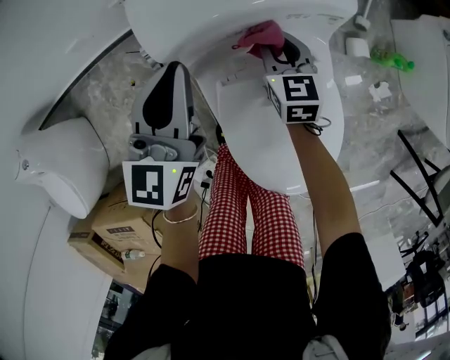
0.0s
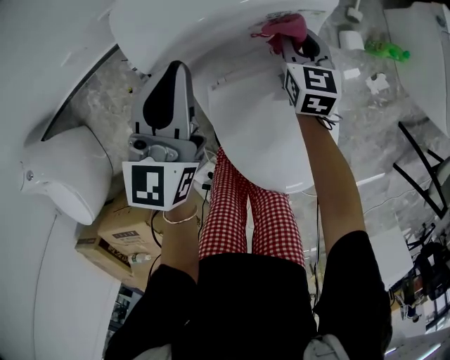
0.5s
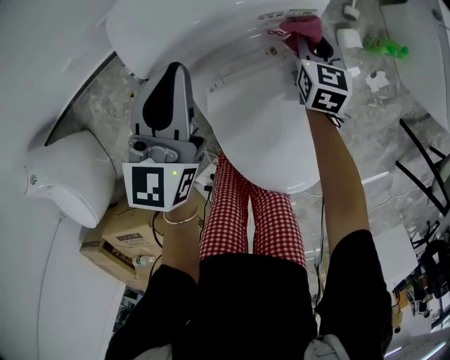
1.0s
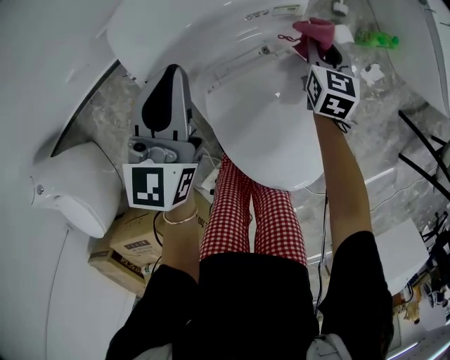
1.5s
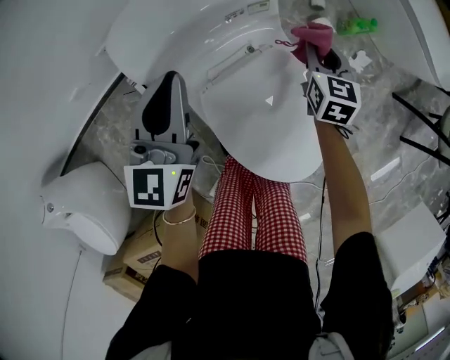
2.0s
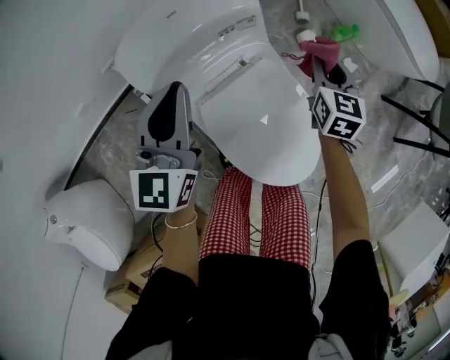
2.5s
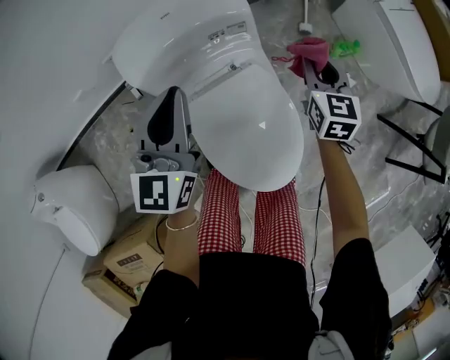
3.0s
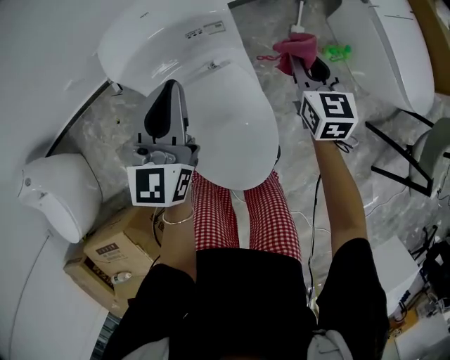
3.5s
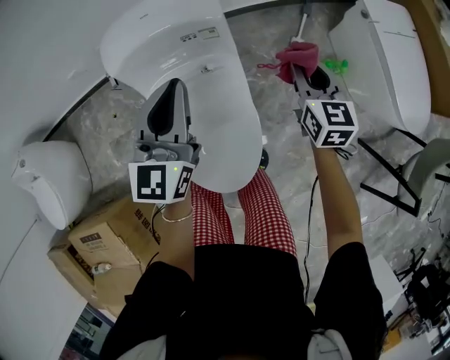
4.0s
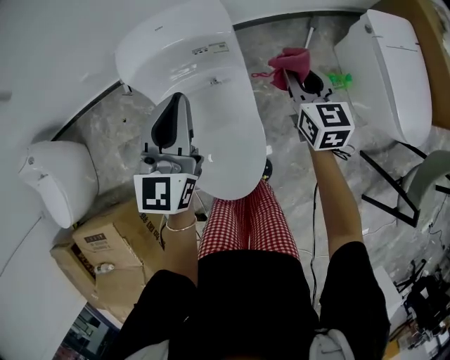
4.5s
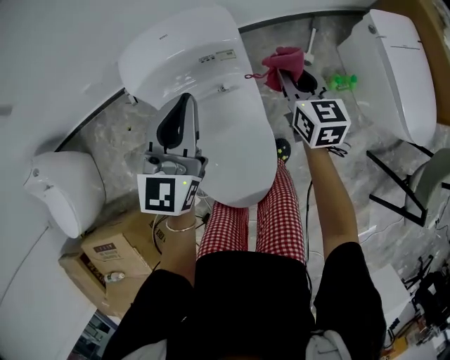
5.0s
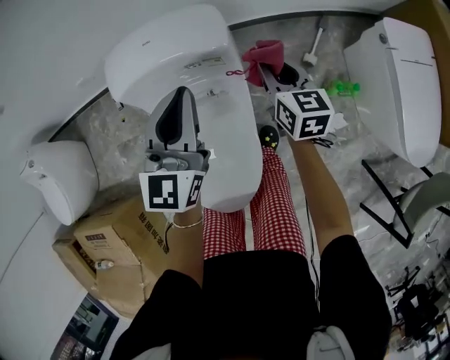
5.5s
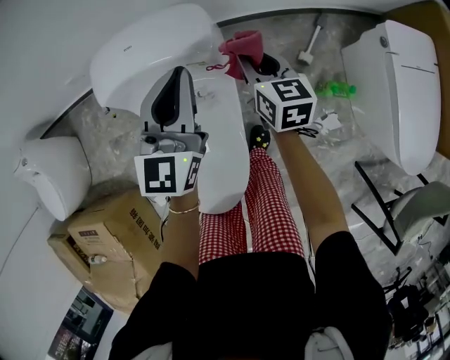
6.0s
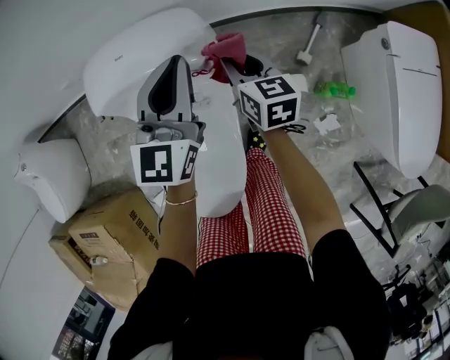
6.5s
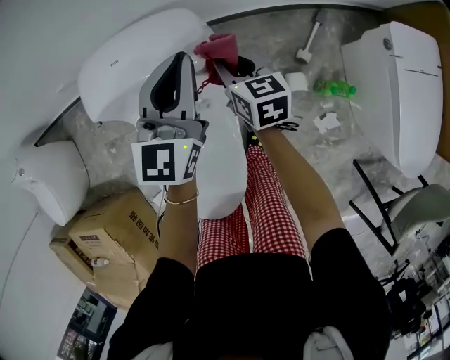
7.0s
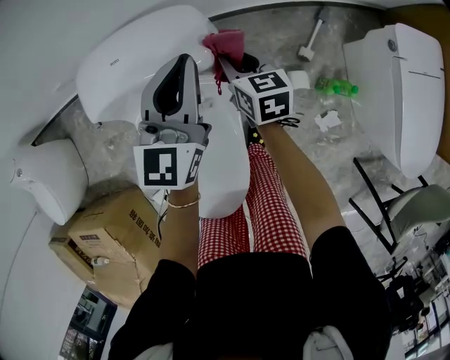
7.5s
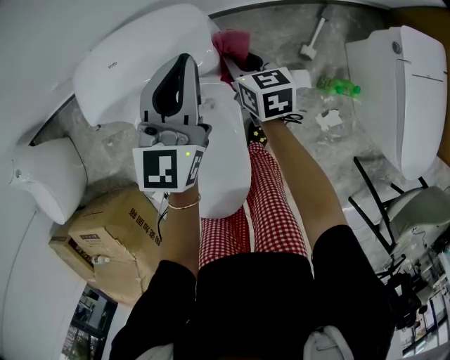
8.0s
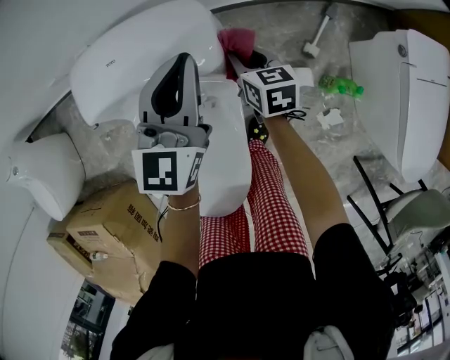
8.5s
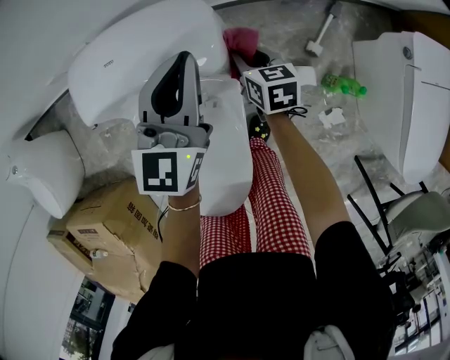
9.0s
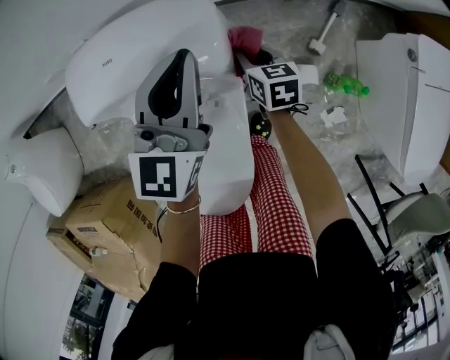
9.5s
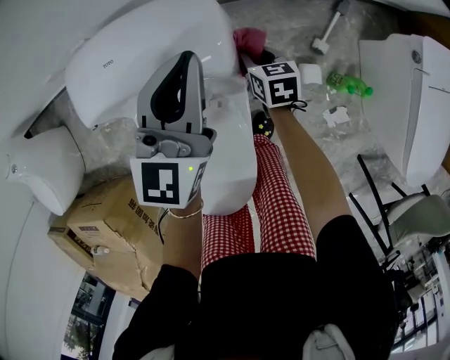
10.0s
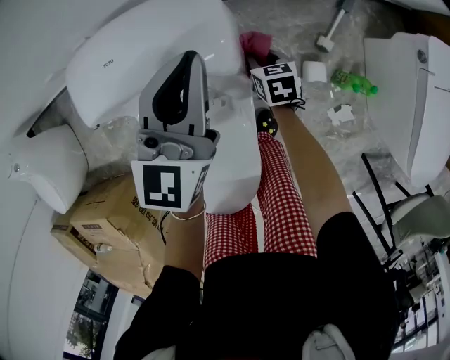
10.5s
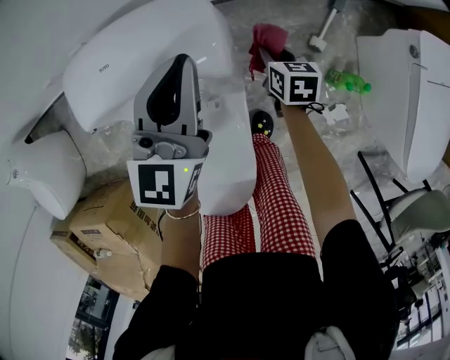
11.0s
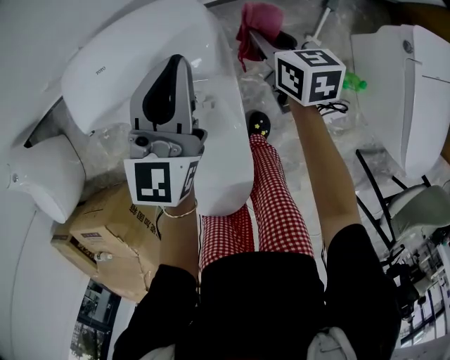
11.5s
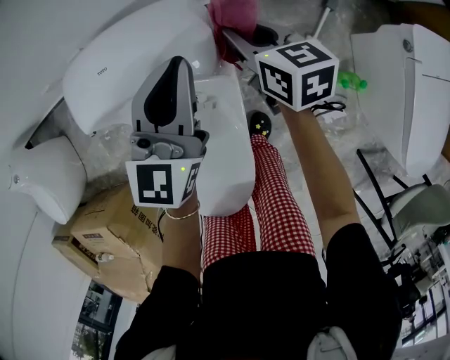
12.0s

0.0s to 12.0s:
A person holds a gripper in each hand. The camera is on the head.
0.0s to 2.0s: The right gripper is displaced to the right by about 20 cm, and changes its angle by roughly 30 degrees. Meanwhile the left gripper travels to the right and upward by approximately 10 cm.
2.0s to 4.0s: The left gripper shifts approximately 20 cm to the right and upward. Meanwhile the right gripper heads upward and to the right, covering roughly 15 cm, and swivels approximately 30 degrees.
4.0s to 6.0s: The left gripper goes approximately 15 cm forward and to the right. The right gripper travels forward and to the left by approximately 15 cm, and turns by roughly 20 degrees.
6.0s to 8.0s: The left gripper goes approximately 10 cm forward and downward. The right gripper heads downward, covering some 10 cm.
8.0s to 10.0s: The right gripper is displaced downward by about 10 cm.
10.0s to 12.0s: The right gripper shifts approximately 15 cm upward.

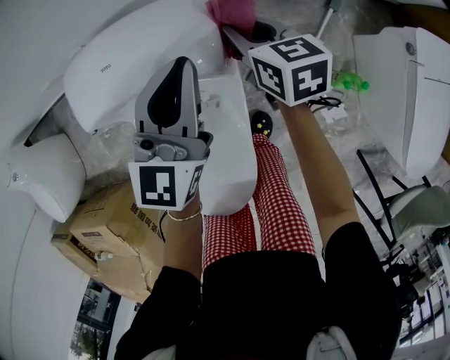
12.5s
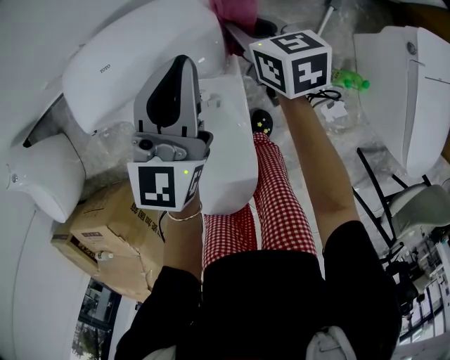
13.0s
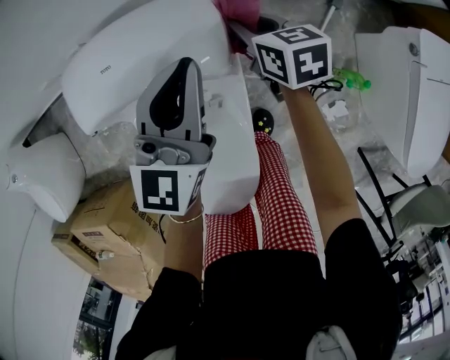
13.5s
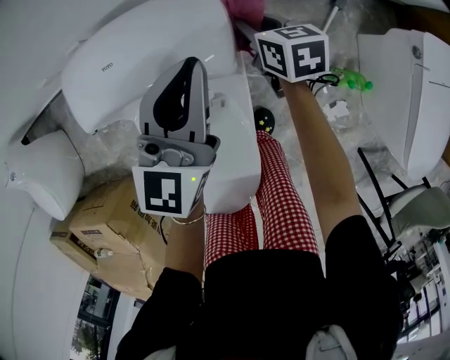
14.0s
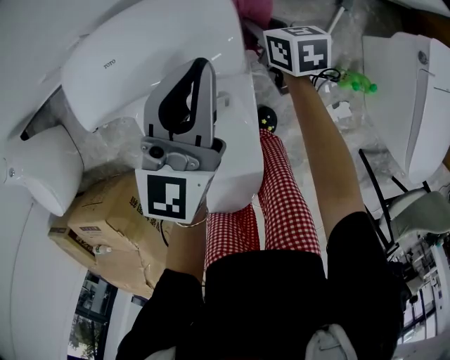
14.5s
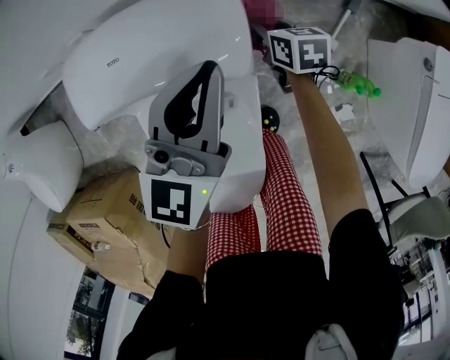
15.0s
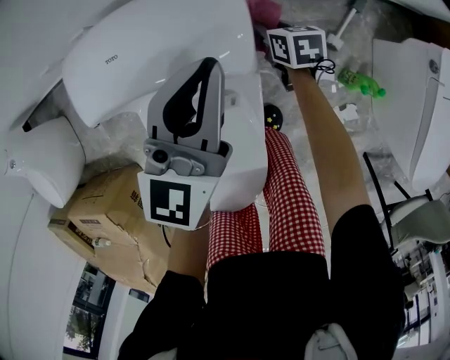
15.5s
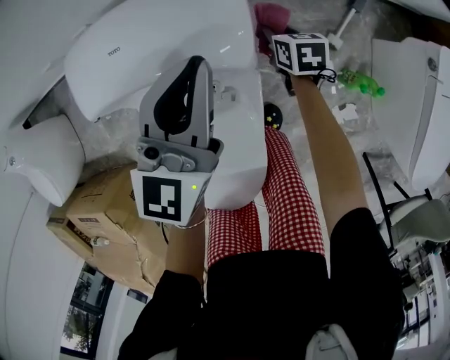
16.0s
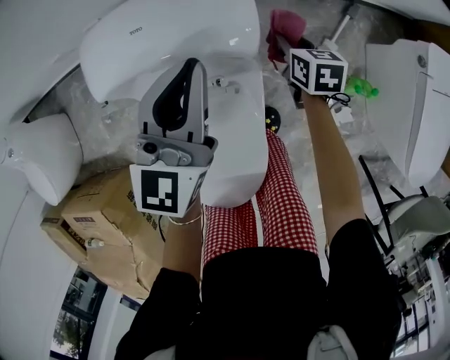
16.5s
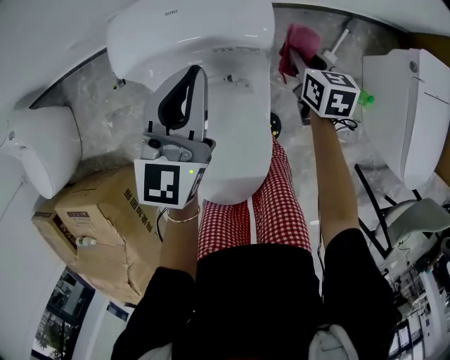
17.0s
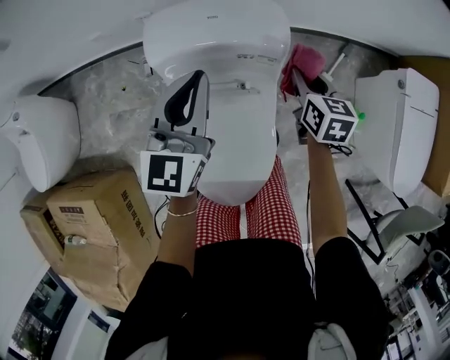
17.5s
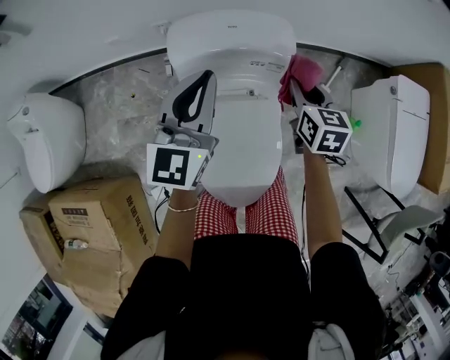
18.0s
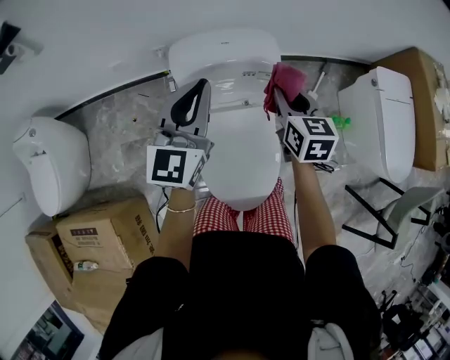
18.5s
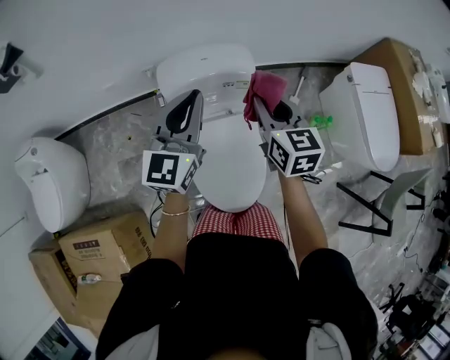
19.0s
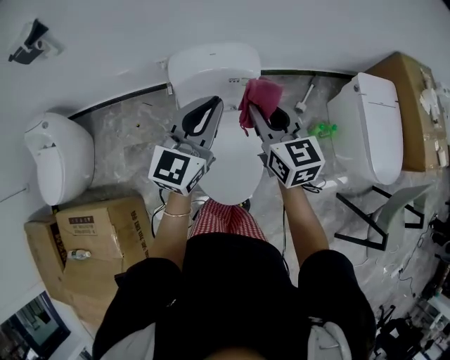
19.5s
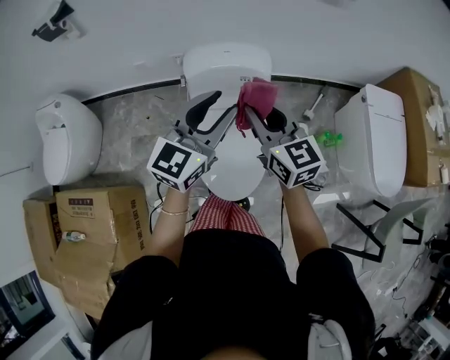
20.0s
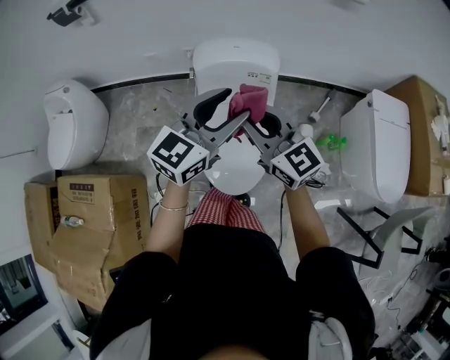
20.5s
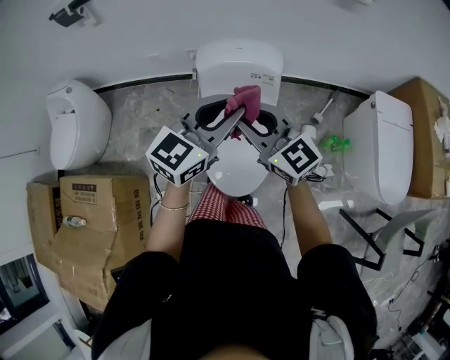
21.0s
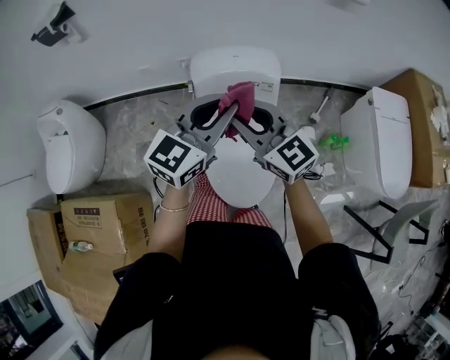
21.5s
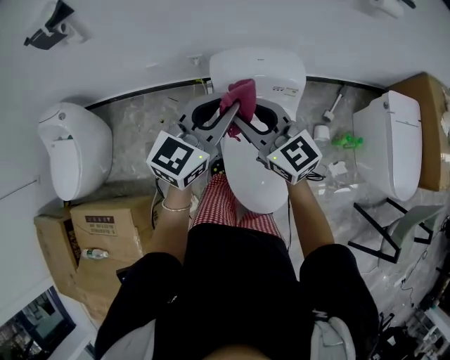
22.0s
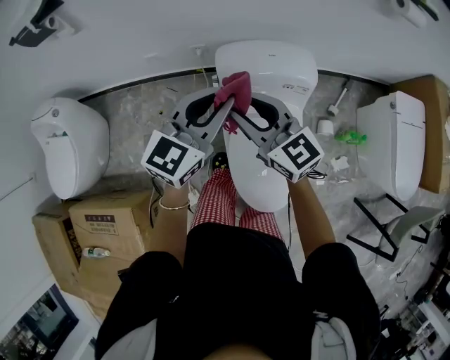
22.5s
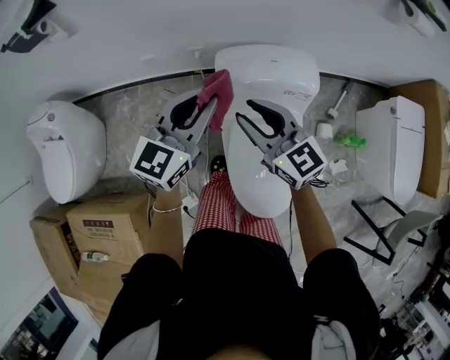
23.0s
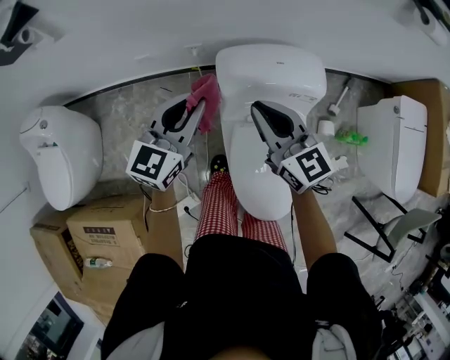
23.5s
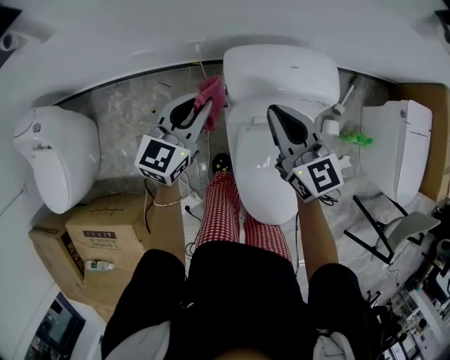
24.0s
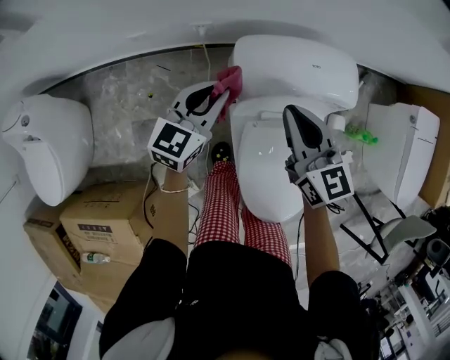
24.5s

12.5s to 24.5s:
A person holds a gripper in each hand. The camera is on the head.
12.5s to 14.5s: The right gripper heads downward, covering roughly 10 cm.
14.5s to 16.5s: The right gripper goes approximately 5 cm backward, and goes downward and returns, some 10 cm each way, while the left gripper changes place by approximately 5 cm.
16.5s to 18.5s: The right gripper moves upward, backward and to the left, about 35 cm, and swivels some 30 degrees. The left gripper shifts approximately 25 cm upward, to the left and backward.
18.5s to 20.5s: The right gripper goes some 25 cm backward and upward, and turns by some 50 degrees; the left gripper moves backward, to the right and upward, approximately 20 cm, and opens.
20.5s to 22.5s: The grippers both shift forward and to the left by about 25 cm. The left gripper closes up.
22.5s to 24.5s: Both grippers travel together downward and forward, roughly 20 cm. The right gripper swivels roughly 20 degrees, and closes.

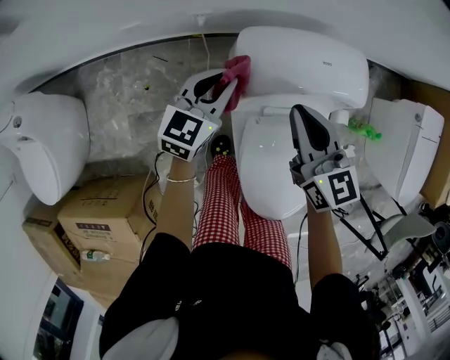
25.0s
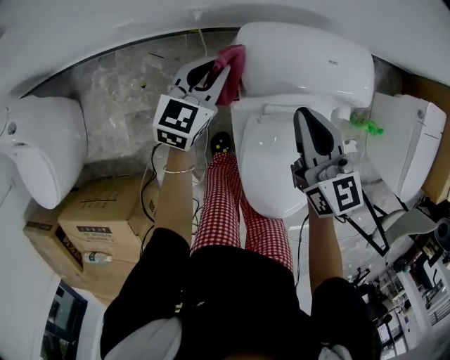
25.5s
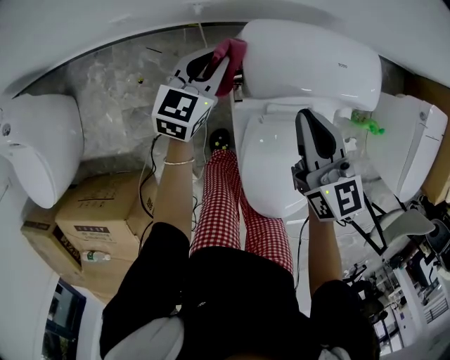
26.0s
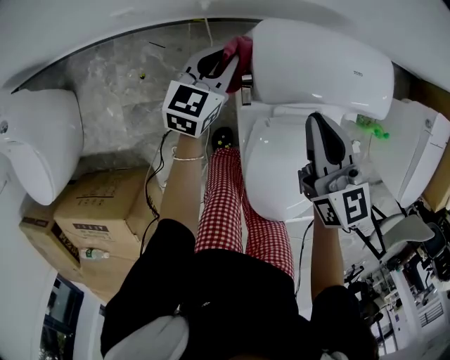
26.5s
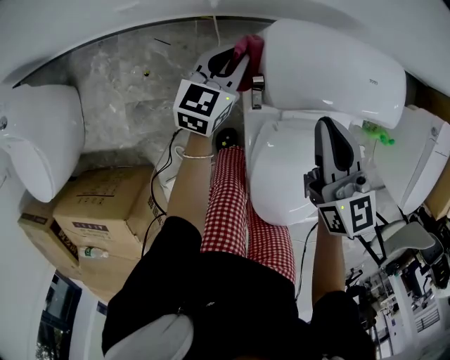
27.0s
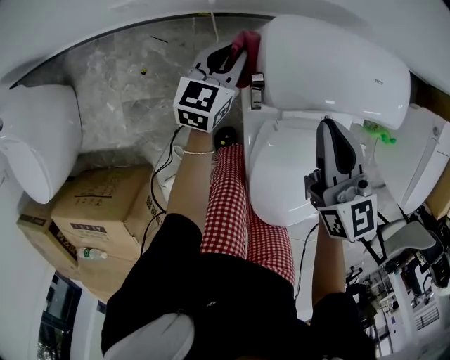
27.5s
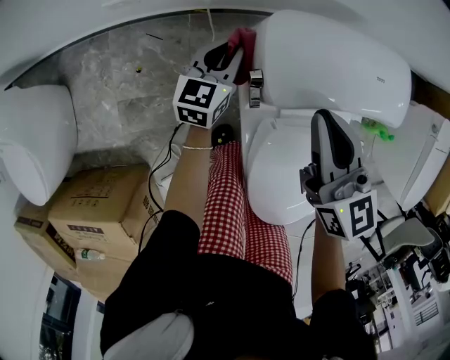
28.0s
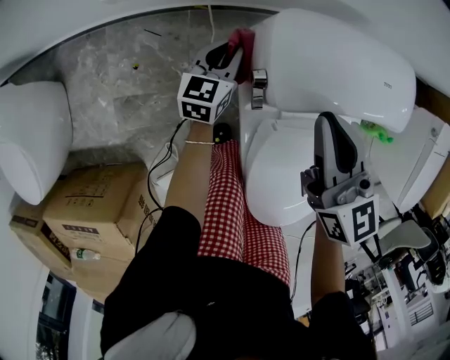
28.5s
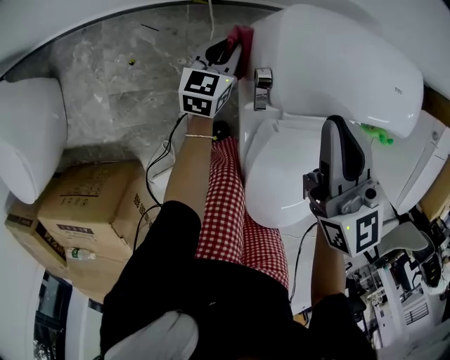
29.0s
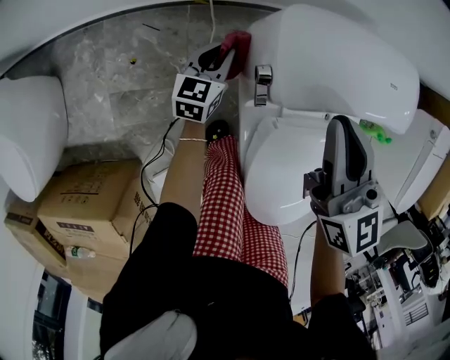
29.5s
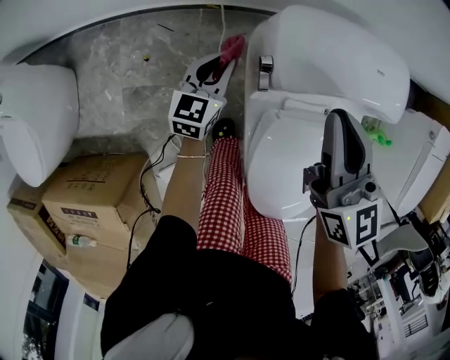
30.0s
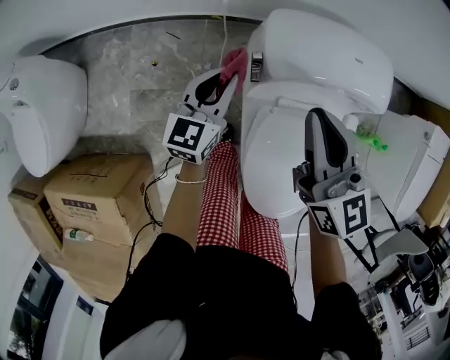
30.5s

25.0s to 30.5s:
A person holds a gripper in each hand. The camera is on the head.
25.0s to 27.0s: The right gripper ends up roughly 5 cm from where it was. Meanwhile the left gripper moves downward and forward, roughly 15 cm.
27.0s to 28.5s: The left gripper travels downward by some 10 cm.
28.5s to 30.5s: The left gripper moves upward and backward, about 20 cm; the right gripper shifts some 10 cm upward and backward.
